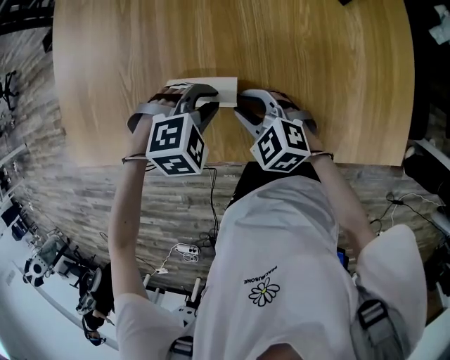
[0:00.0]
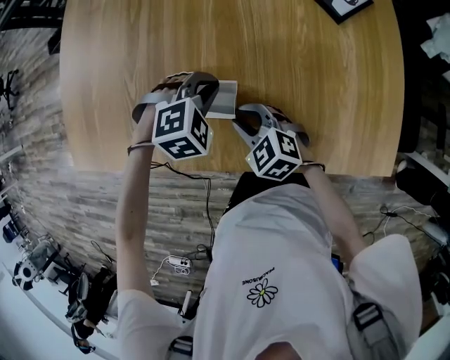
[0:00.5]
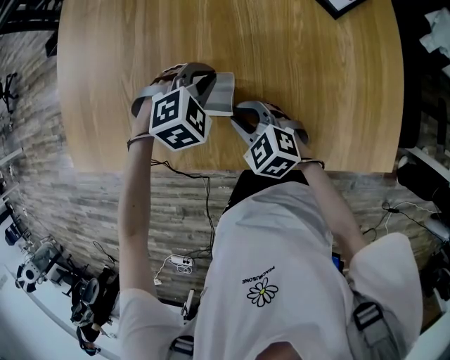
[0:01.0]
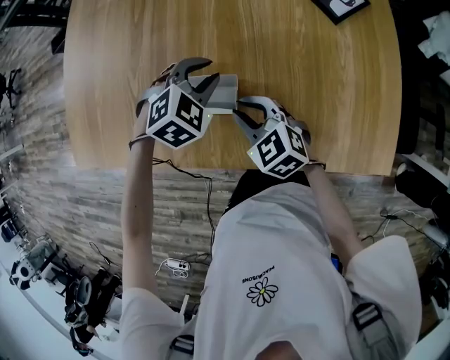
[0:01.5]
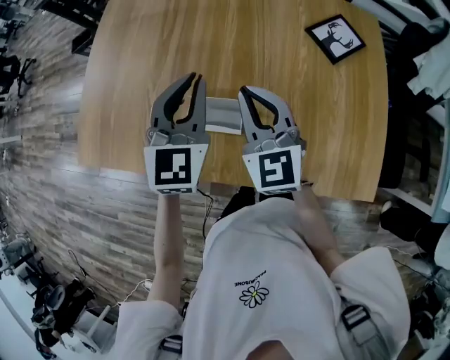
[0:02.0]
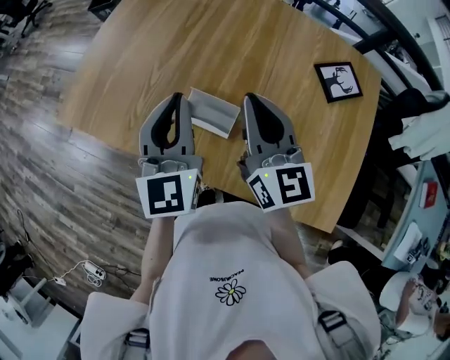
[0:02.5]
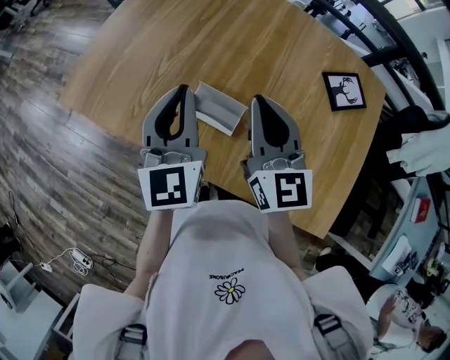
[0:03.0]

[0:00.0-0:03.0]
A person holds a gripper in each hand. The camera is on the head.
0:00.0 to 0:01.5: The left gripper is displaced forward by approximately 10 cm, and swivels about 30 degrees; the right gripper changes place by approximately 5 cm.
0:01.5 to 0:03.0: The left gripper shifts roughly 25 cm upward and to the left, tips its fingers upward by about 50 degrees, and closes its fingers. Meanwhile the right gripper heads upward, covering approximately 25 cm, and angles its fingers upward, by approximately 40 degrees.

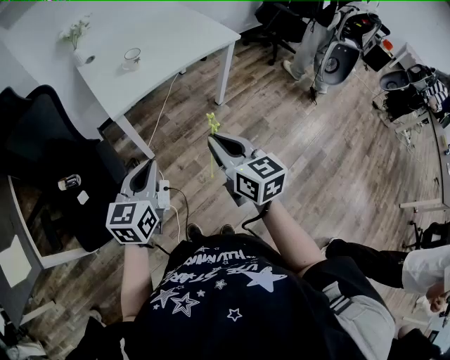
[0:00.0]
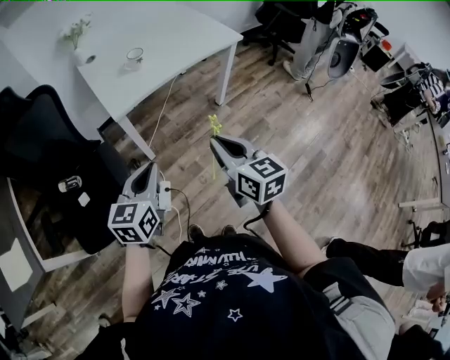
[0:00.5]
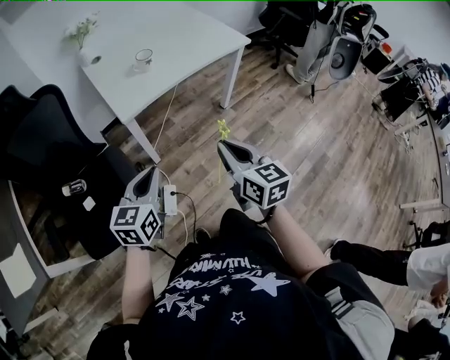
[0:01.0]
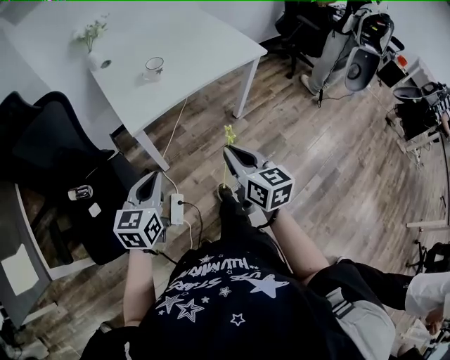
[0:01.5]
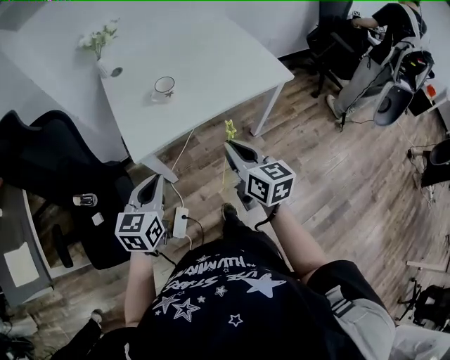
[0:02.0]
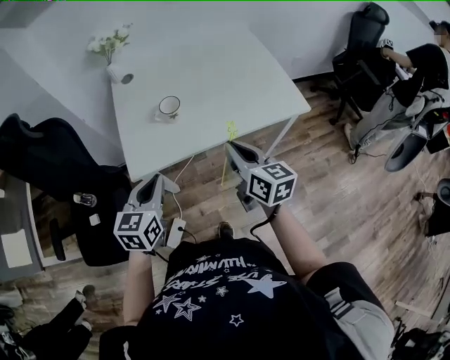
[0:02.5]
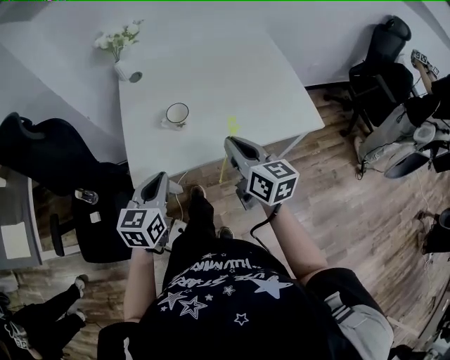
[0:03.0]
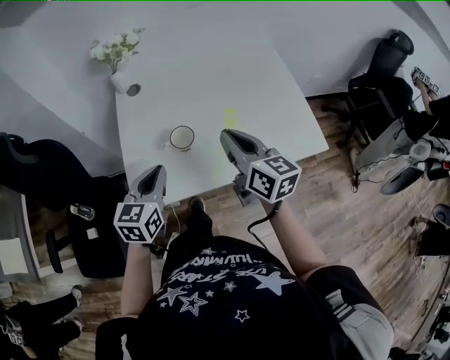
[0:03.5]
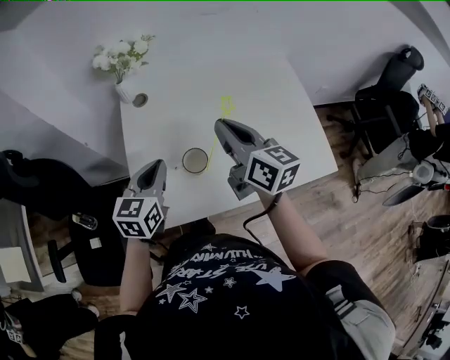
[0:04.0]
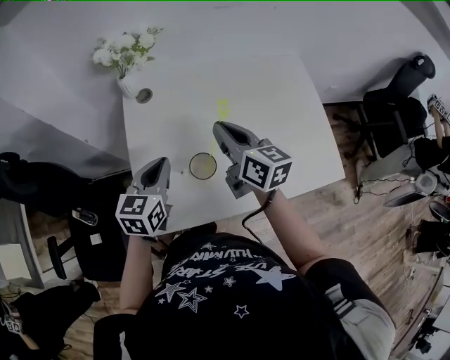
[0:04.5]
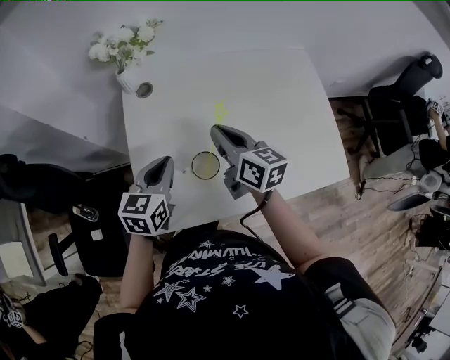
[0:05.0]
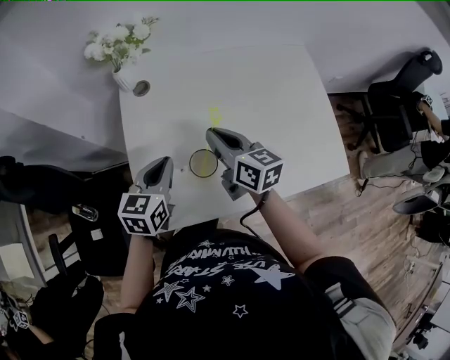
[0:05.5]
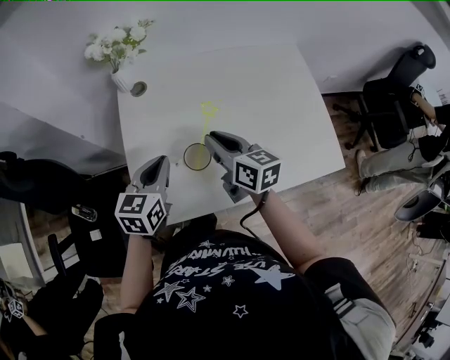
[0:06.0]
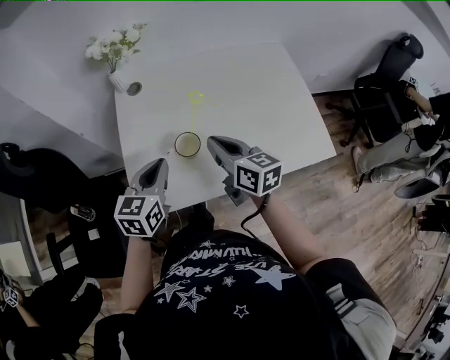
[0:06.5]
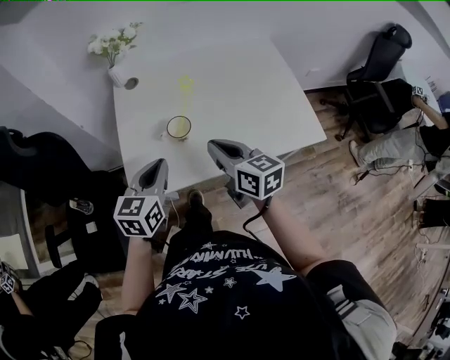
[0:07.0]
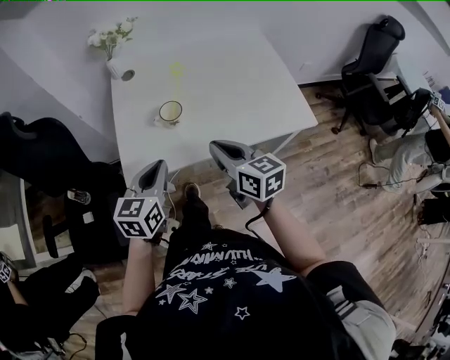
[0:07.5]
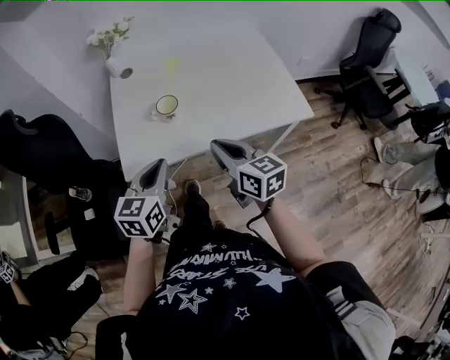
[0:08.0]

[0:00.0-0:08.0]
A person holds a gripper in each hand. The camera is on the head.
0:00.0 to 0:02.0: Both grippers move forward, about 25 cm.
0:02.0 to 0:04.0: The two grippers go some 35 cm forward.
0:04.0 to 0:06.0: The right gripper travels downward by roughly 10 cm.
0:06.0 to 0:08.0: The grippers both shift backward by approximately 25 cm.

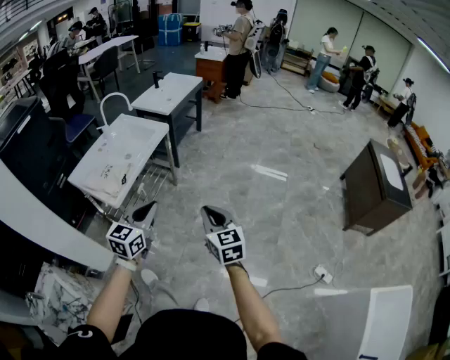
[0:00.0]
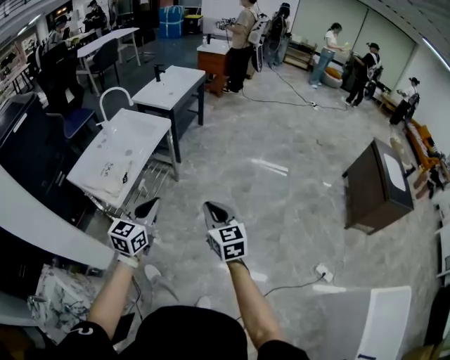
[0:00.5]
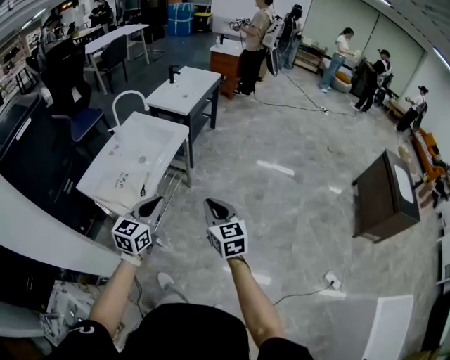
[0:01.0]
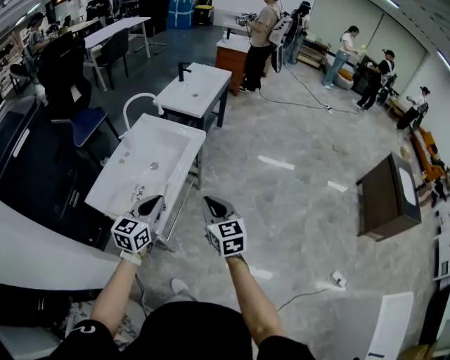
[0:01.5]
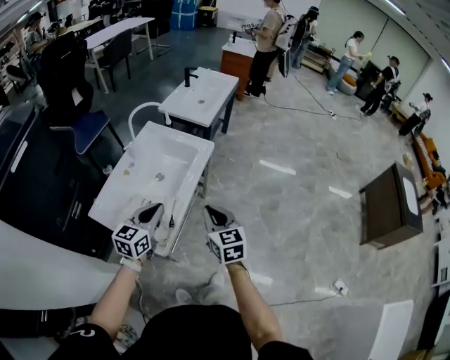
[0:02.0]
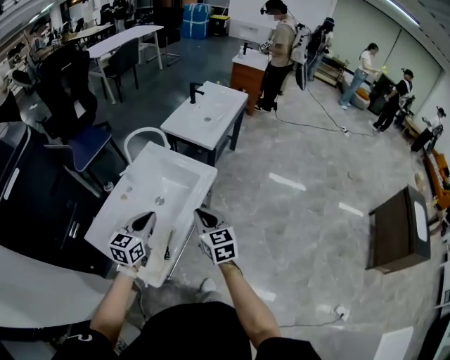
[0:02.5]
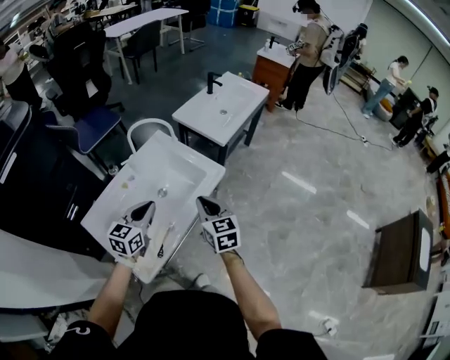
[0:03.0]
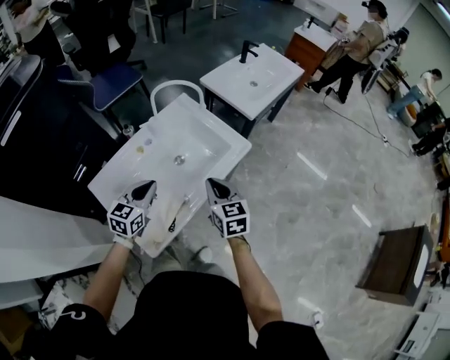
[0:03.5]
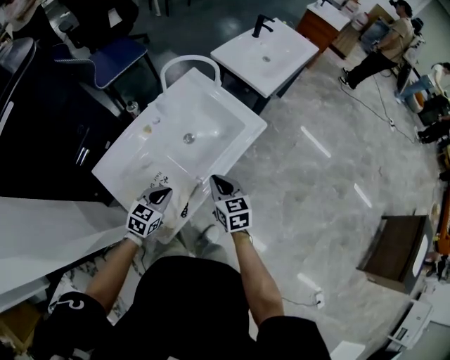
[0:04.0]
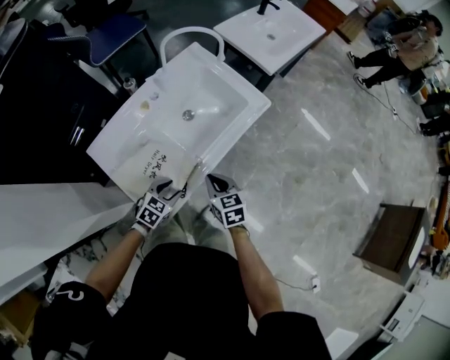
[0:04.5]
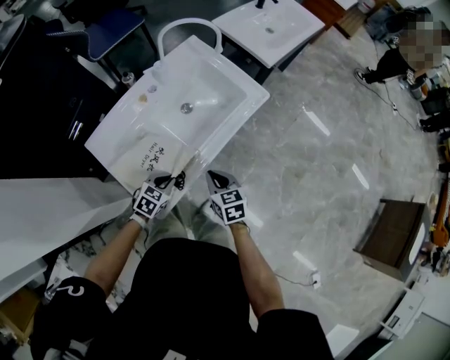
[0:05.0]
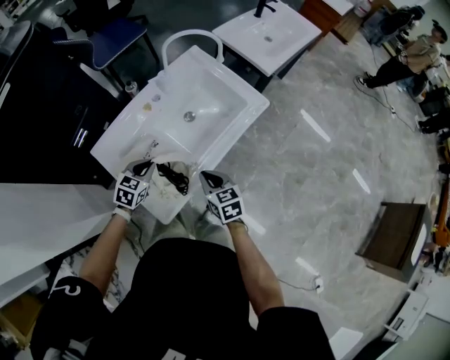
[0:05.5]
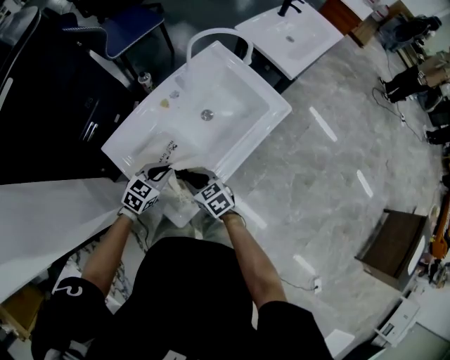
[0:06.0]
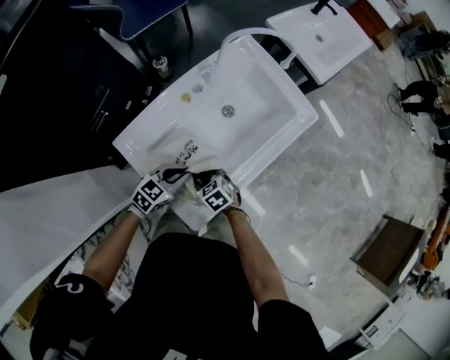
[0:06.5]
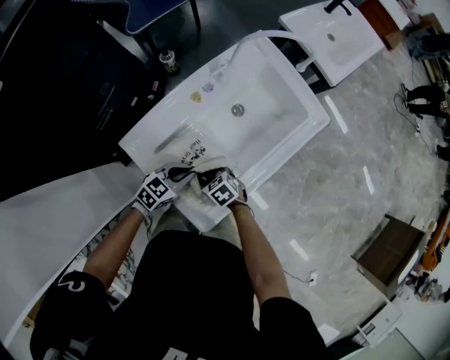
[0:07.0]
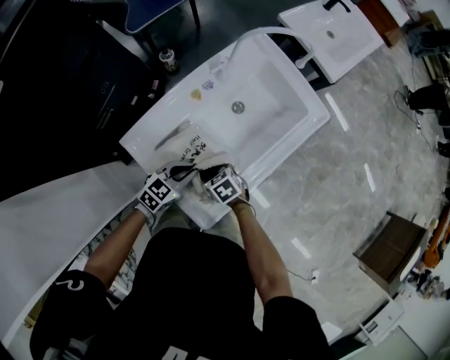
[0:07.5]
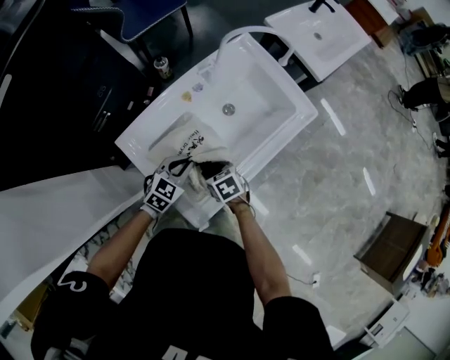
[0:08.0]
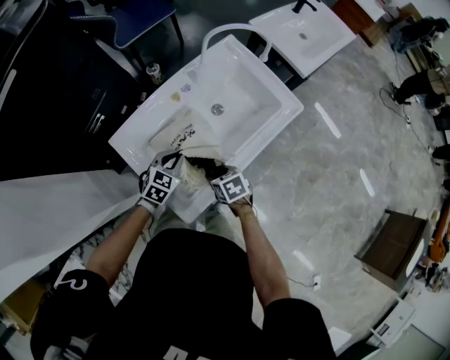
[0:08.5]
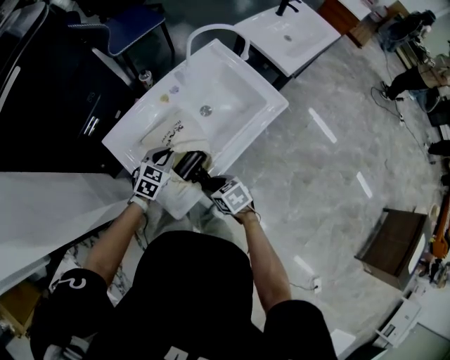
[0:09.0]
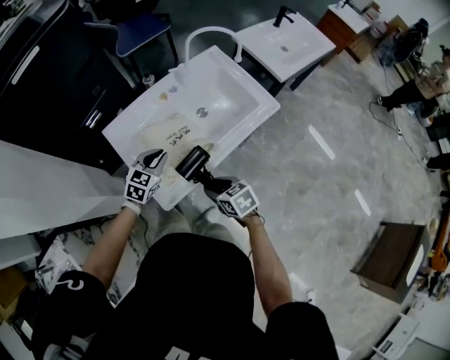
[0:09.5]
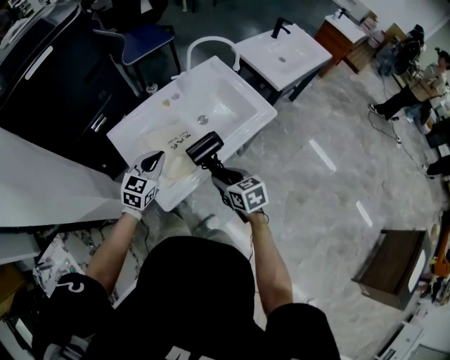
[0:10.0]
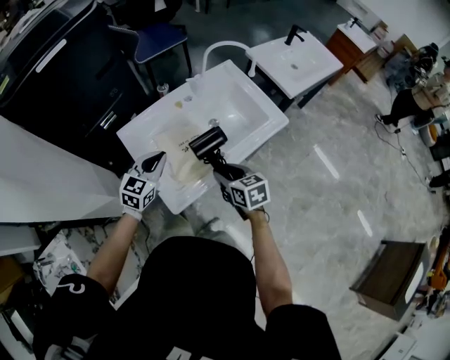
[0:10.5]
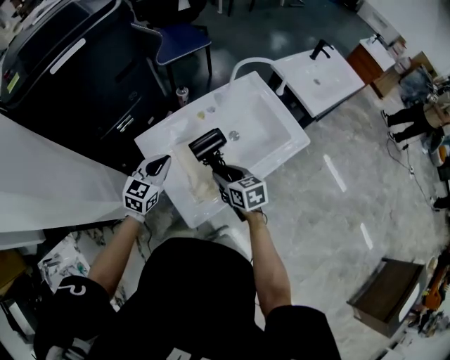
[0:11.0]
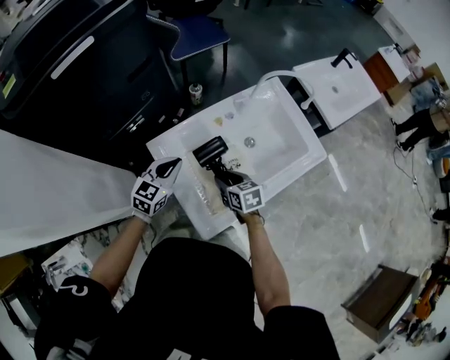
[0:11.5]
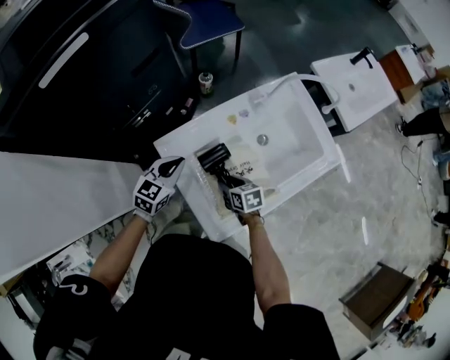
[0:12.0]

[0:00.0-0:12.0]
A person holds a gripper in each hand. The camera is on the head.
0:00.0 to 0:02.0: Both grippers are carried to the left and forward, roughly 40 cm.
0:02.0 to 0:04.0: The right gripper is displaced forward and downward by some 25 cm, and turns by approximately 20 degrees. The left gripper moves downward and forward, approximately 20 cm, and turns by roughly 20 degrees.
0:04.0 to 0:06.0: The left gripper goes some 10 cm to the left, and opens, then closes again, while the right gripper moves to the left, downward and backward, roughly 20 cm, and swivels about 30 degrees.
0:06.0 to 0:08.0: The right gripper shifts about 5 cm downward.
0:08.0 to 0:10.0: The left gripper heads upward and backward, covering approximately 15 cm, and changes its angle by some 20 degrees. Meanwhile the right gripper shifts about 25 cm upward, to the right and backward, and swivels approximately 20 degrees.
0:10.0 to 0:12.0: The right gripper moves to the left, forward and downward, about 30 cm. The left gripper travels to the left and forward by roughly 20 cm.

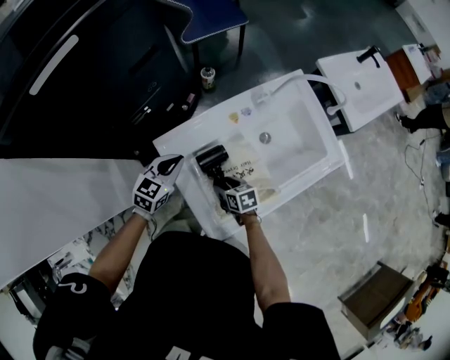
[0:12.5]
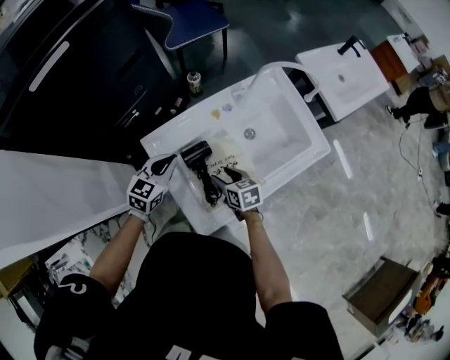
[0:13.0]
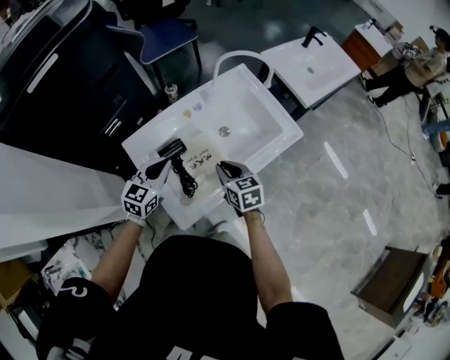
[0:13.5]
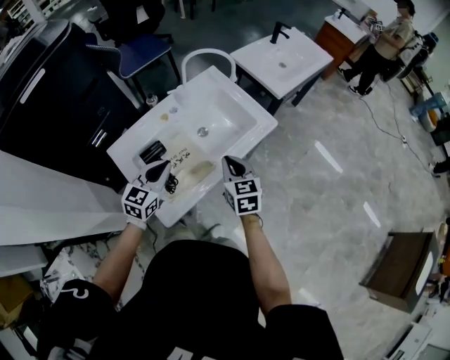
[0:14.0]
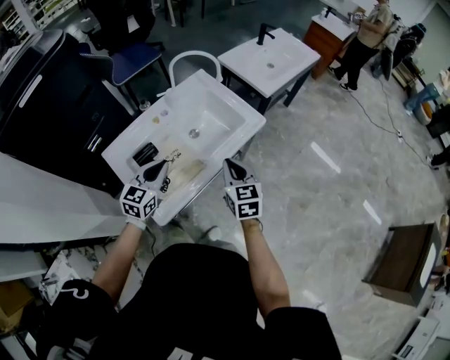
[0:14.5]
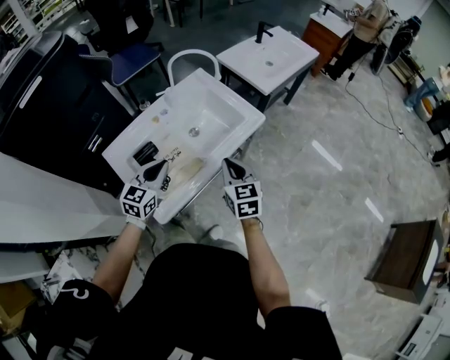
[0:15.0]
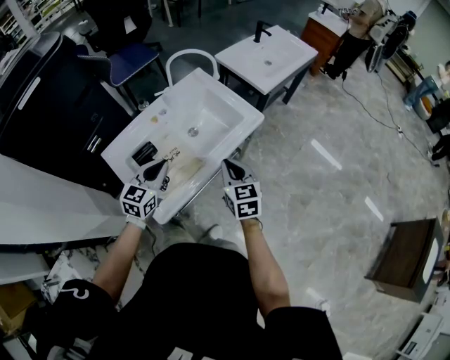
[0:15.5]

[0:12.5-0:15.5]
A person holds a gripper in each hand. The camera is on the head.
0:12.5 to 0:14.0: The right gripper shifts by about 35 cm, turns by some 50 degrees, and closes its fingers, while the left gripper ends up some 25 cm from where it was.
0:14.0 to 0:15.5: The right gripper ends up approximately 5 cm from where it was.
